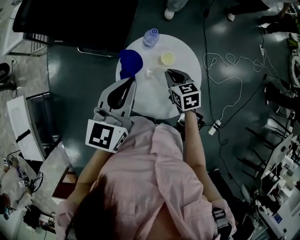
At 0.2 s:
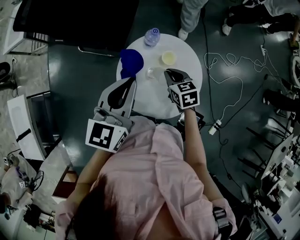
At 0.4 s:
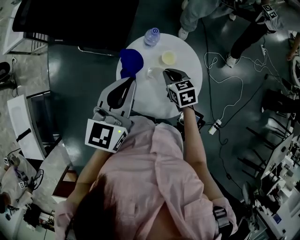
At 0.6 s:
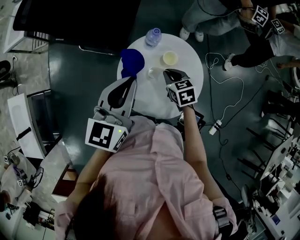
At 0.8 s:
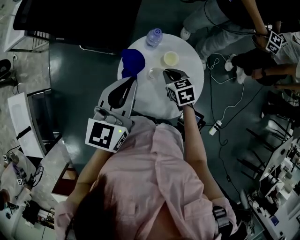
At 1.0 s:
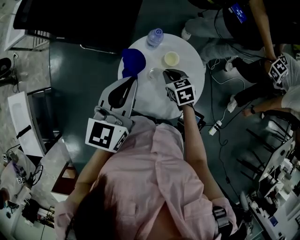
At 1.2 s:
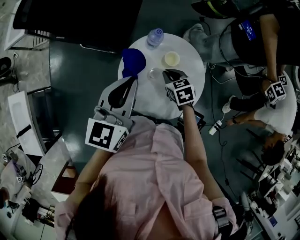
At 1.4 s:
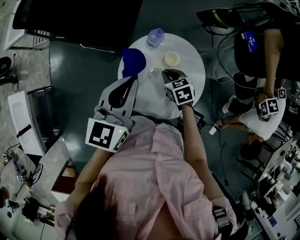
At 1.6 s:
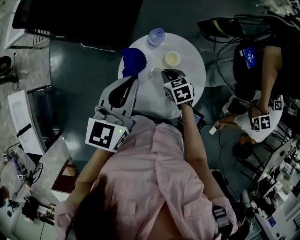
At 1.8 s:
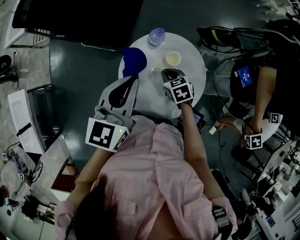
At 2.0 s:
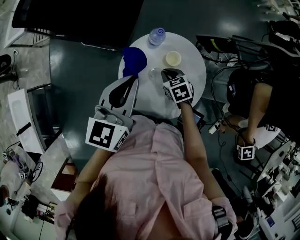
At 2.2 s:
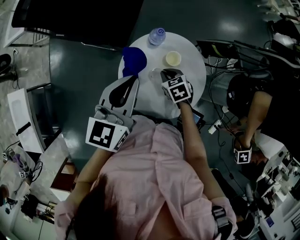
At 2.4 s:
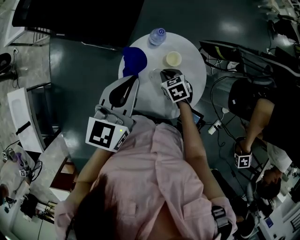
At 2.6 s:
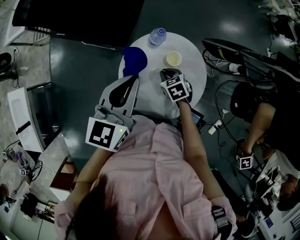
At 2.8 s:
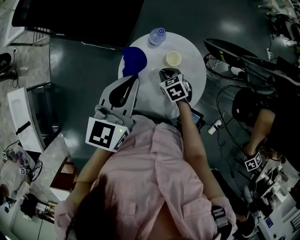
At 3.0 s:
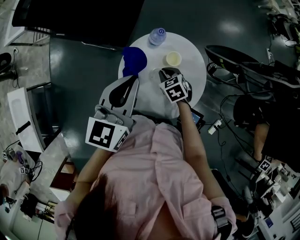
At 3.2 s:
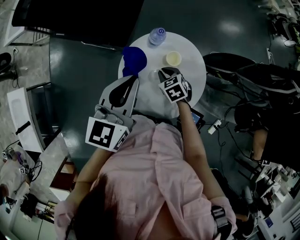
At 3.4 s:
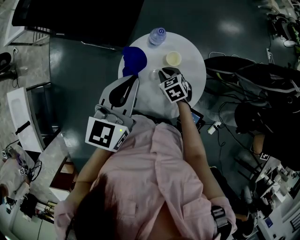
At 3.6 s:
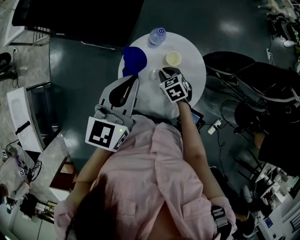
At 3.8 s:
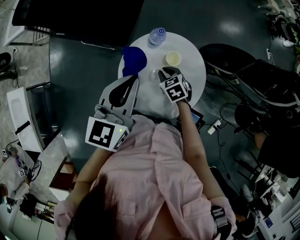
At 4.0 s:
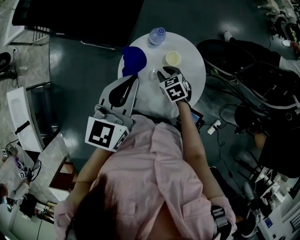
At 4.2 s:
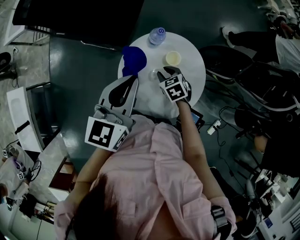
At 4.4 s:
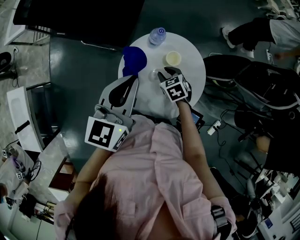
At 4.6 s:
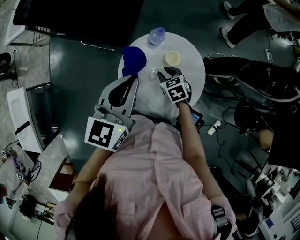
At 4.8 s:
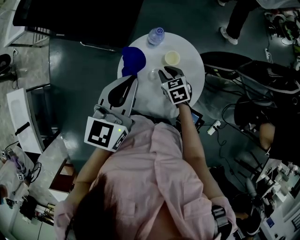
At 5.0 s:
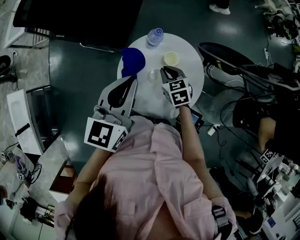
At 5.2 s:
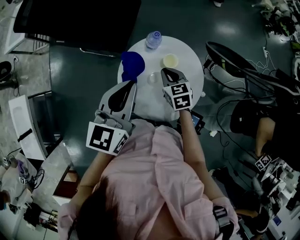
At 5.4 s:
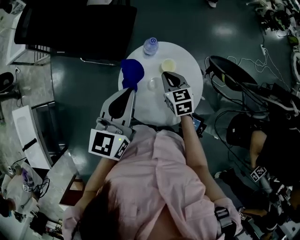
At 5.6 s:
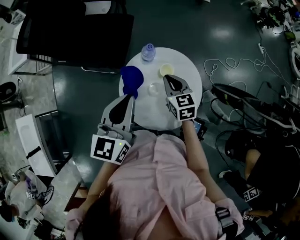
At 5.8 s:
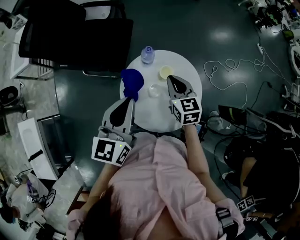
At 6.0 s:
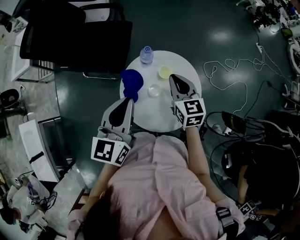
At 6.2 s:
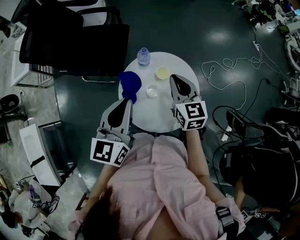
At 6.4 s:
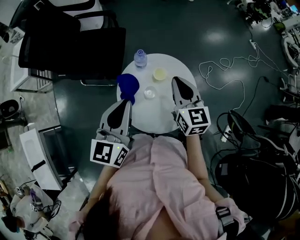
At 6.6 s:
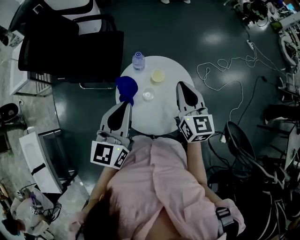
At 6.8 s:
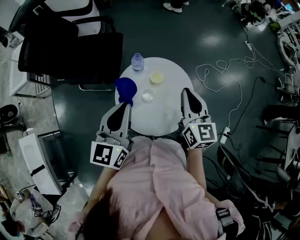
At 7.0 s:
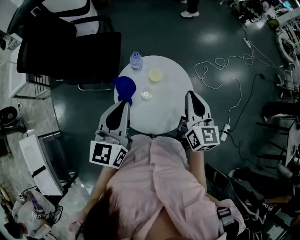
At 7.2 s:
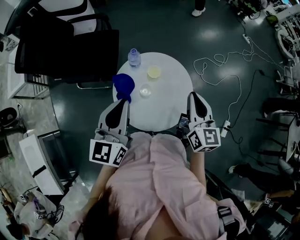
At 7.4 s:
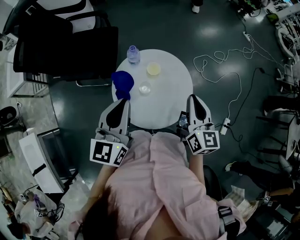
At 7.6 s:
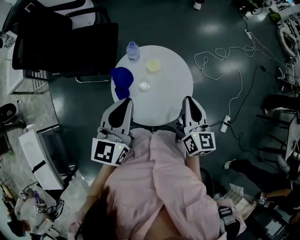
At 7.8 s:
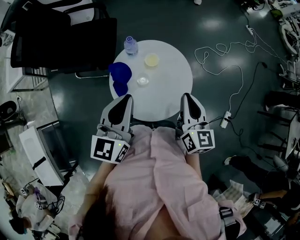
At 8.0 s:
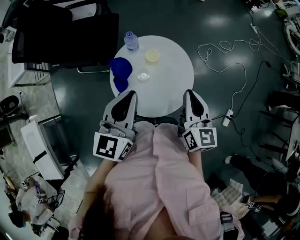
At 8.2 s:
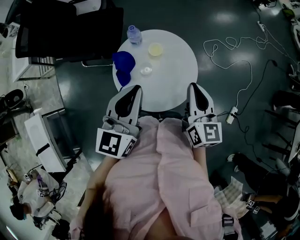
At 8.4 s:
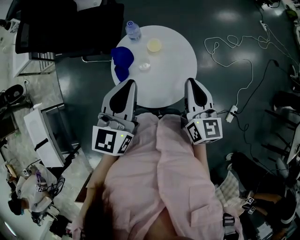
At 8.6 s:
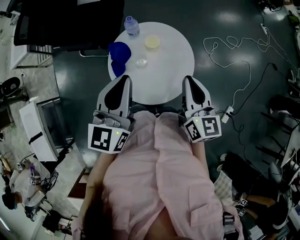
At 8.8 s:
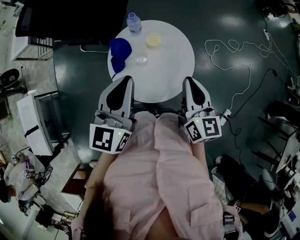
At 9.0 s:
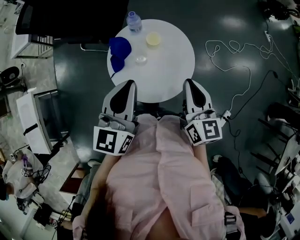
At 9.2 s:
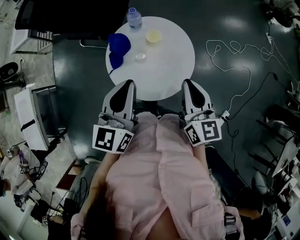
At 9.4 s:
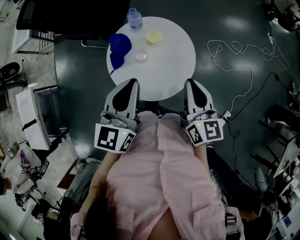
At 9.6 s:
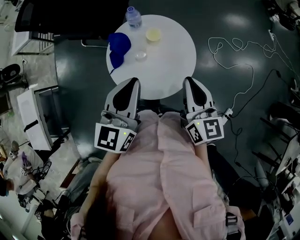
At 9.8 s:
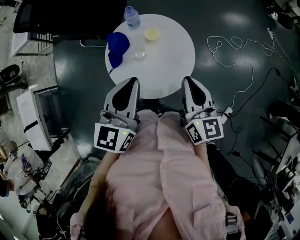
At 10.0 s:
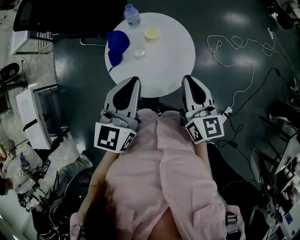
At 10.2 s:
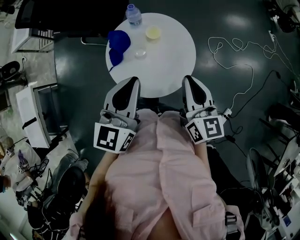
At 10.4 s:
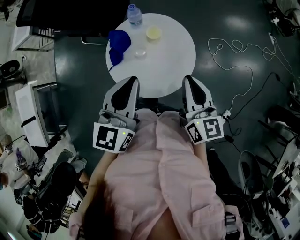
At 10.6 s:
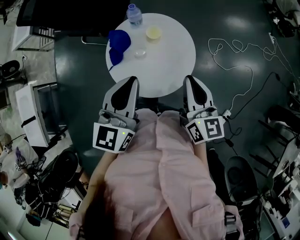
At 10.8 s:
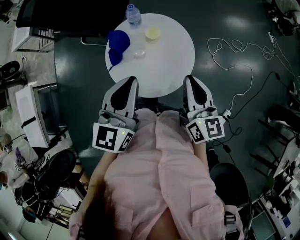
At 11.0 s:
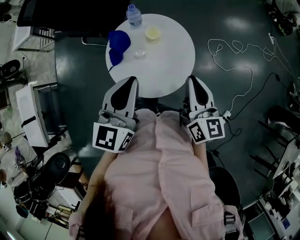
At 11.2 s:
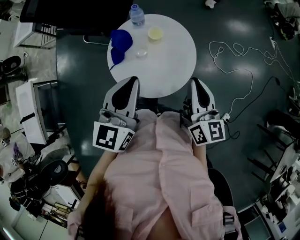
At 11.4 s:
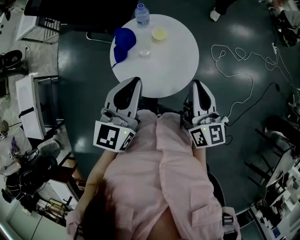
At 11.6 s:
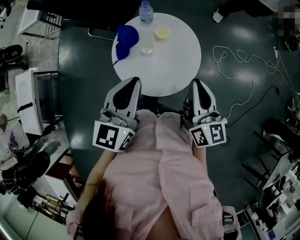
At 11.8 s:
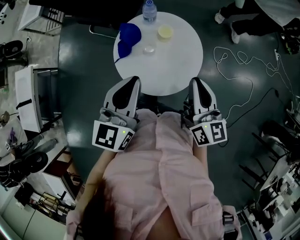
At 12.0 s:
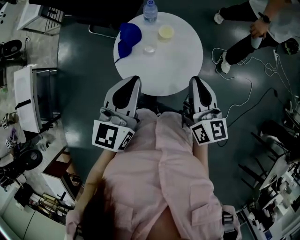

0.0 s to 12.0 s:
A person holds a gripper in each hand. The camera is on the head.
0.0 to 1.6 s: The right gripper is displaced downward by about 5 cm.
1.6 to 3.0 s: The grippers move only a little.
3.0 to 4.4 s: Both grippers stay about where they are.
4.4 to 6.0 s: The right gripper heads upward, covering about 20 cm, tilts its fingers roughly 40 degrees upward, and closes up.
6.0 to 7.6 s: The right gripper is displaced backward, to the right and upward by roughly 15 cm, and swivels approximately 30 degrees.
7.6 to 9.0 s: The left gripper moves to the right, about 5 cm.
9.0 to 12.0 s: There are only small adjustments of the grippers.

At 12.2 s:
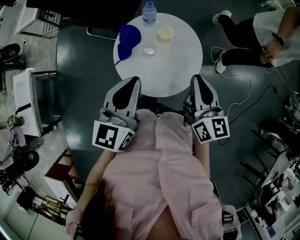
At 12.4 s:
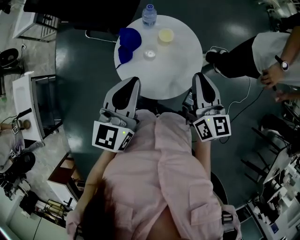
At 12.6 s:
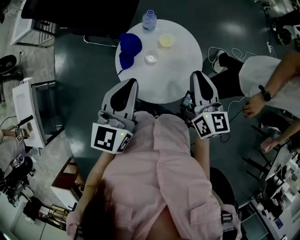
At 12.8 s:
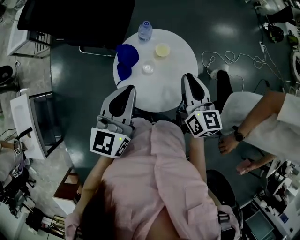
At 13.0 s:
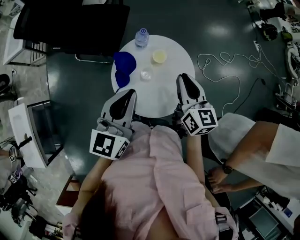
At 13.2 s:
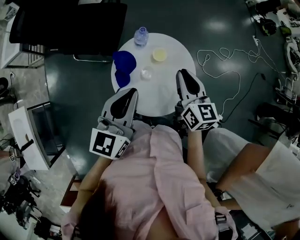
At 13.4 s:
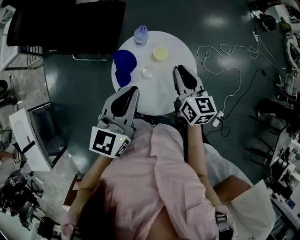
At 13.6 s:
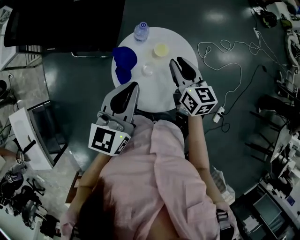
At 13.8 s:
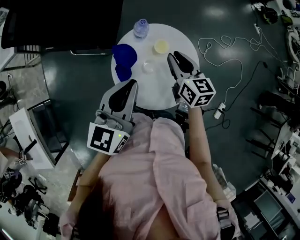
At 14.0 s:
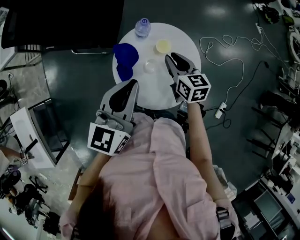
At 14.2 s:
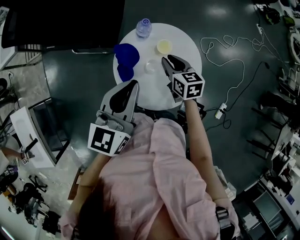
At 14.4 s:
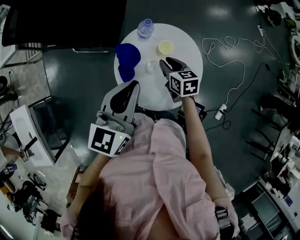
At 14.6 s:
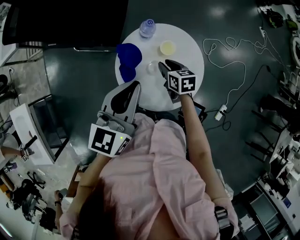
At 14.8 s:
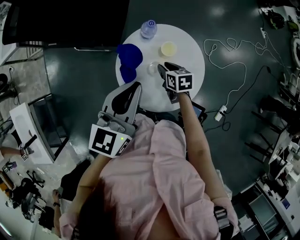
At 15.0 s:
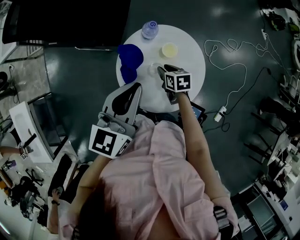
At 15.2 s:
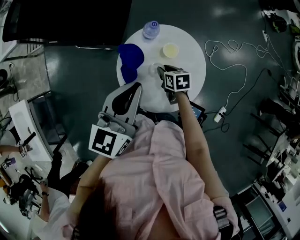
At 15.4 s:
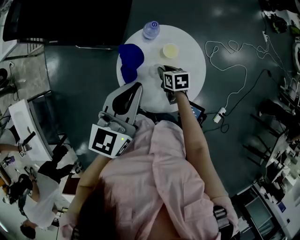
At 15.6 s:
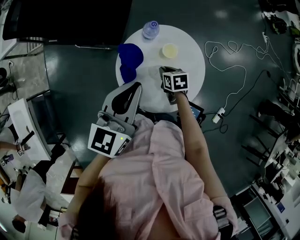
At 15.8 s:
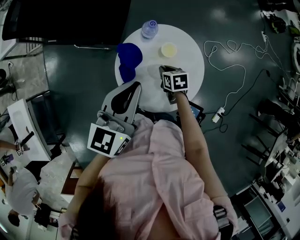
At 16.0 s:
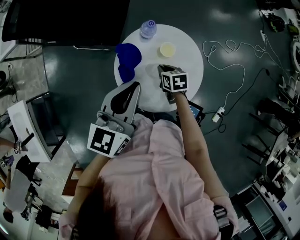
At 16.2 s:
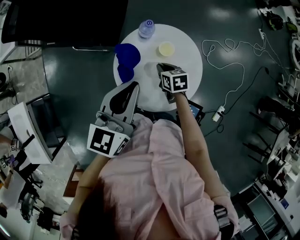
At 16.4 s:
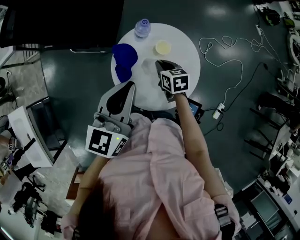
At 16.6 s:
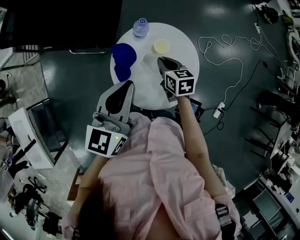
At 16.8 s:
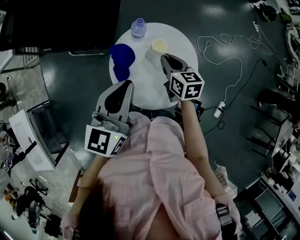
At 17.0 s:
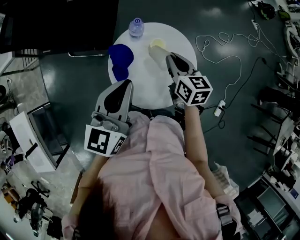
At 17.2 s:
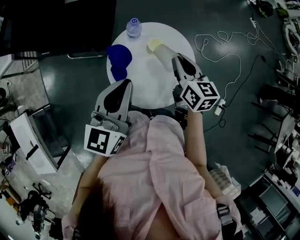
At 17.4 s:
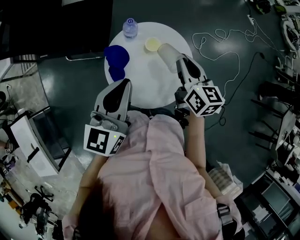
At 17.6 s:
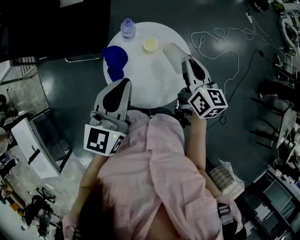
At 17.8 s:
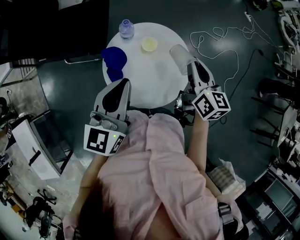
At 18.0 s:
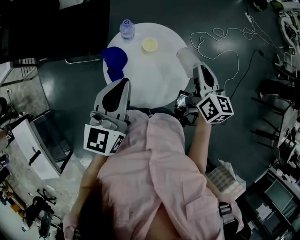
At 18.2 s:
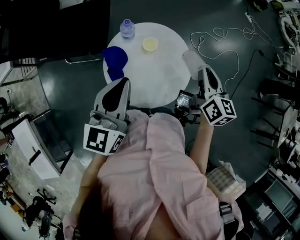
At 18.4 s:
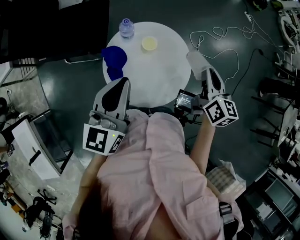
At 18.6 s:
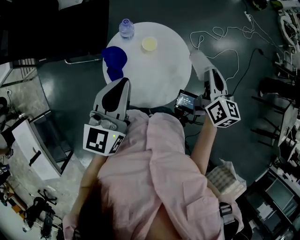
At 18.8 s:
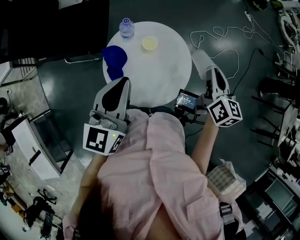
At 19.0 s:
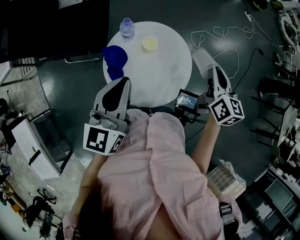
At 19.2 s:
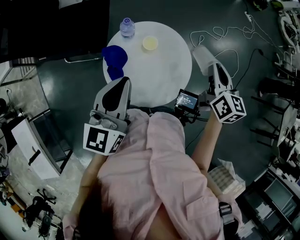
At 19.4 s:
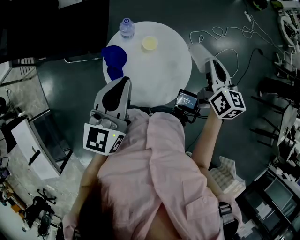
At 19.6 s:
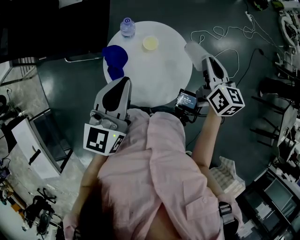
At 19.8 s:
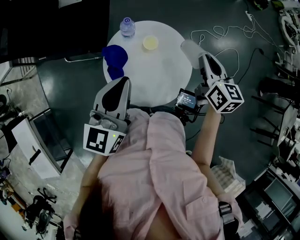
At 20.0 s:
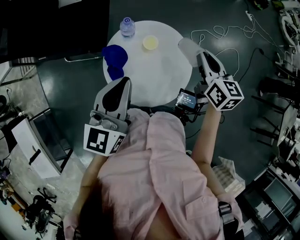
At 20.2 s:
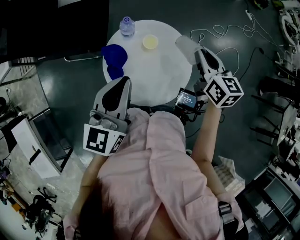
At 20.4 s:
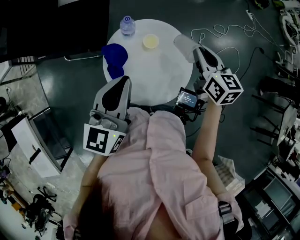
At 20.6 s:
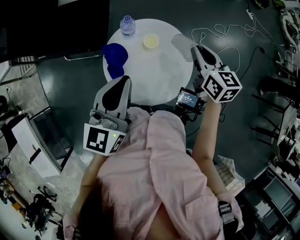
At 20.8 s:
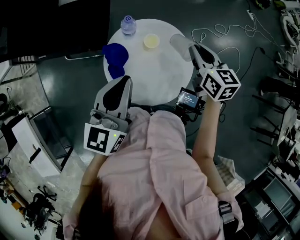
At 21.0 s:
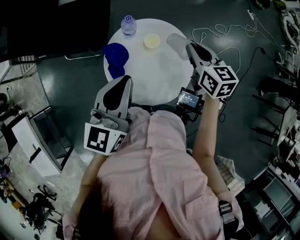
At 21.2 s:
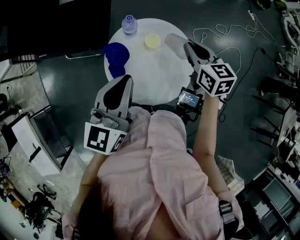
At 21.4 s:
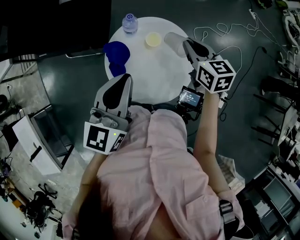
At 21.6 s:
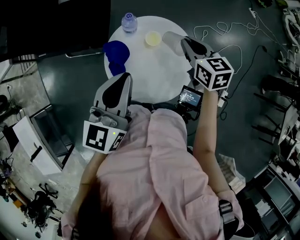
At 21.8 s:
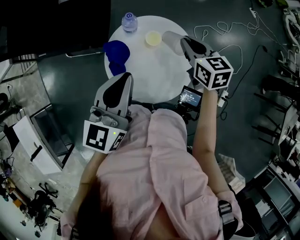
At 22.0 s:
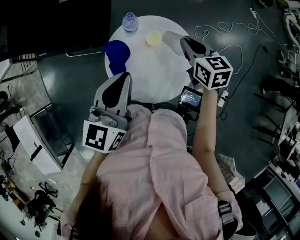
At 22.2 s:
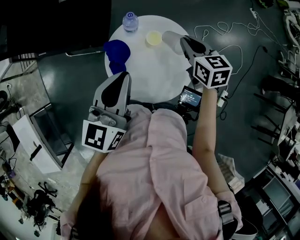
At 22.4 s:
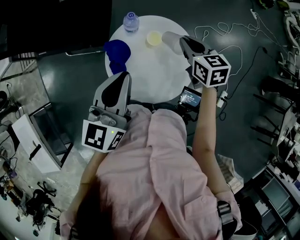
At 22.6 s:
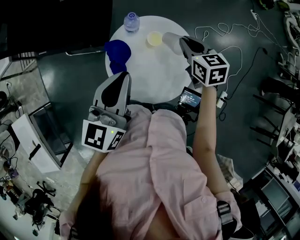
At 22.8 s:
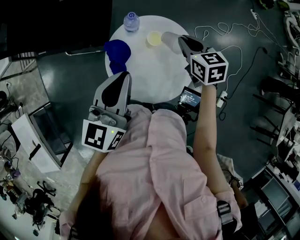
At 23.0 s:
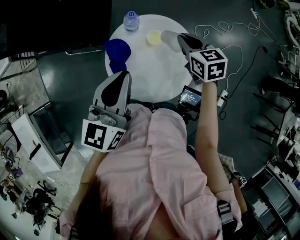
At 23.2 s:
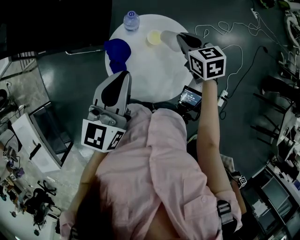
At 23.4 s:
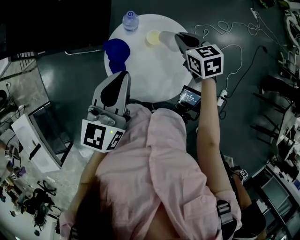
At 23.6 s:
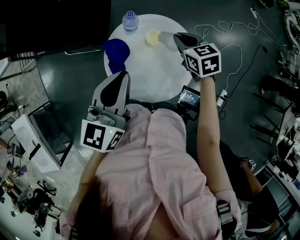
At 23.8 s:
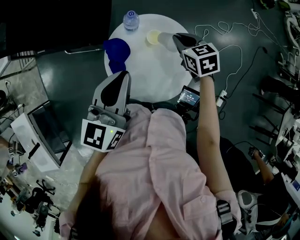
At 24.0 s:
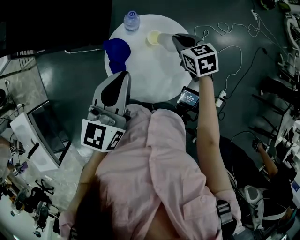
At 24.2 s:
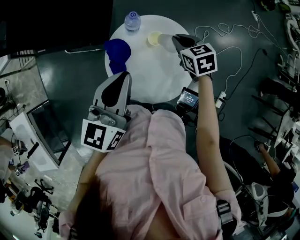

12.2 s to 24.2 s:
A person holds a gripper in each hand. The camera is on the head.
12.2 to 13.8 s: The right gripper shifts about 20 cm forward, to the left and downward; the left gripper travels forward and to the left by about 10 cm.
13.8 to 15.2 s: The right gripper travels downward by some 20 cm, and tilts its fingers about 30 degrees downward.
15.2 to 16.6 s: The right gripper travels upward by roughly 10 cm.
16.6 to 18.2 s: The right gripper travels upward and to the right by about 25 cm, and turns by about 40 degrees.
18.2 to 19.8 s: The grippers move only a little.
19.8 to 21.2 s: The right gripper travels to the left by approximately 5 cm.
21.2 to 22.6 s: The grippers make only small movements.
22.6 to 24.2 s: The right gripper shifts by roughly 5 cm.
